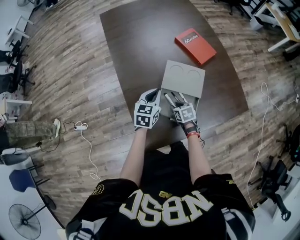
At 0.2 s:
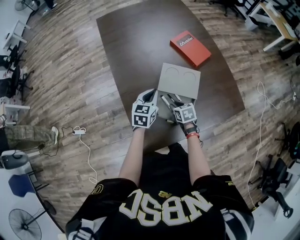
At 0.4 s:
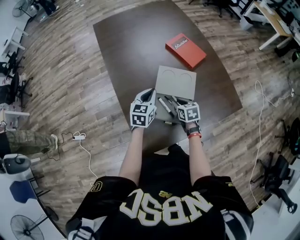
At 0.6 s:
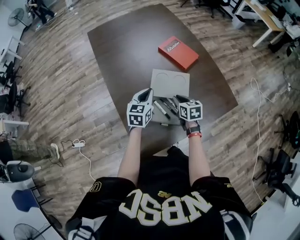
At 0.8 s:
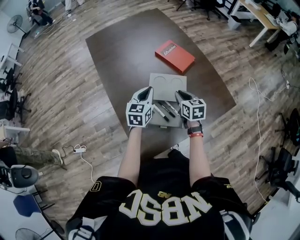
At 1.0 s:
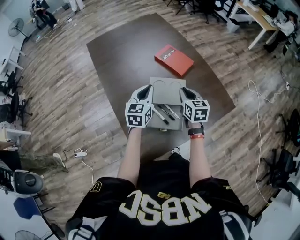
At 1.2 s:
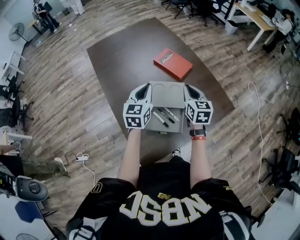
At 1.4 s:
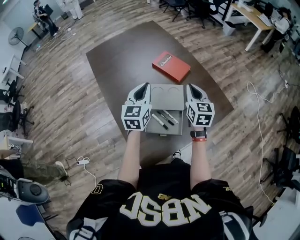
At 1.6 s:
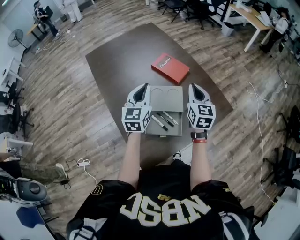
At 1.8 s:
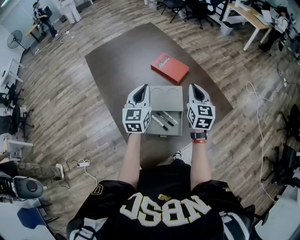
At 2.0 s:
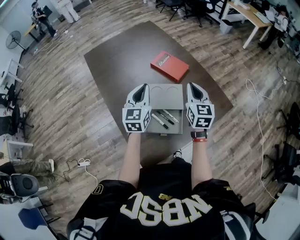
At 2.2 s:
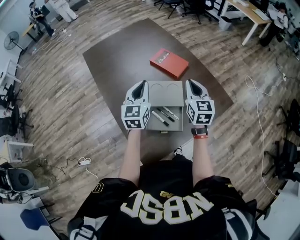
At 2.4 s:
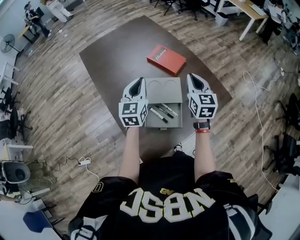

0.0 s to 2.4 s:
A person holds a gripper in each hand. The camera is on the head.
0.0 to 1.2 s: The right gripper shifts roughly 30 cm upward and to the right, tips its fingers upward by some 40 degrees, and closes its fingers. Meanwhile the left gripper travels upward by roughly 15 cm.
1.2 to 2.4 s: The right gripper travels upward by roughly 5 cm.

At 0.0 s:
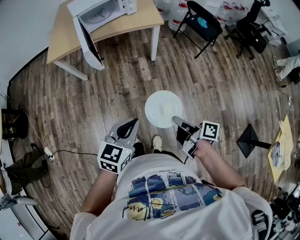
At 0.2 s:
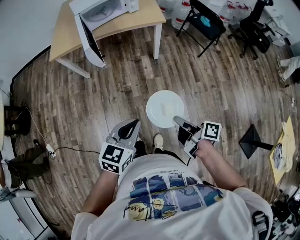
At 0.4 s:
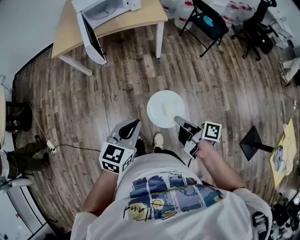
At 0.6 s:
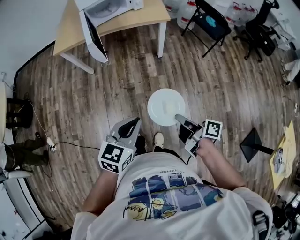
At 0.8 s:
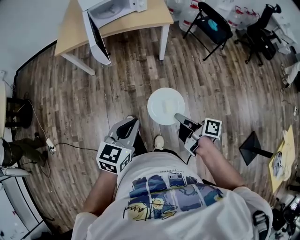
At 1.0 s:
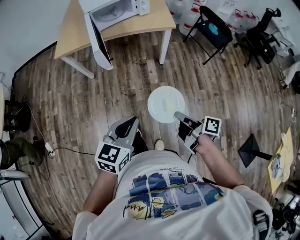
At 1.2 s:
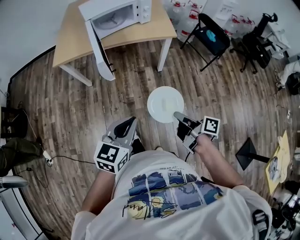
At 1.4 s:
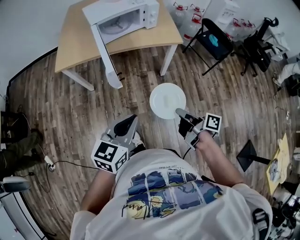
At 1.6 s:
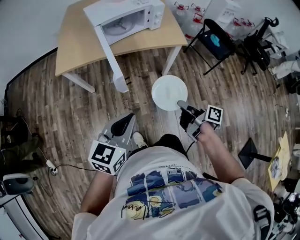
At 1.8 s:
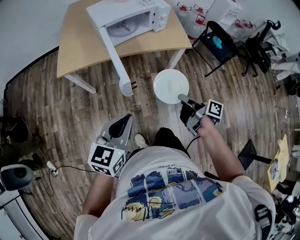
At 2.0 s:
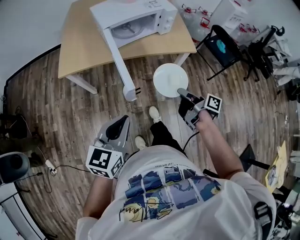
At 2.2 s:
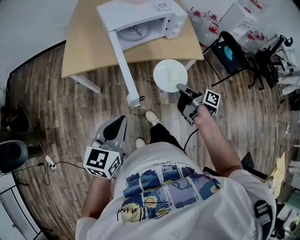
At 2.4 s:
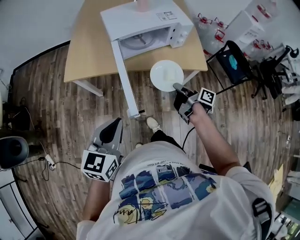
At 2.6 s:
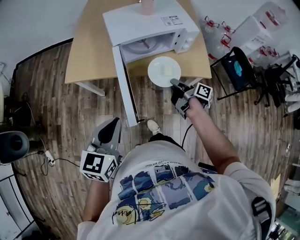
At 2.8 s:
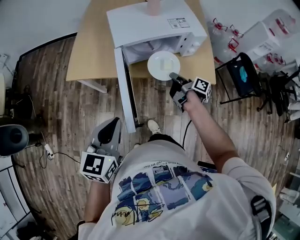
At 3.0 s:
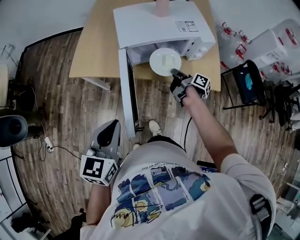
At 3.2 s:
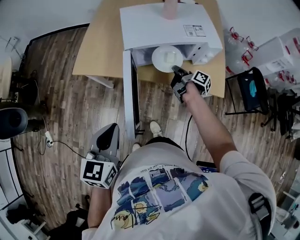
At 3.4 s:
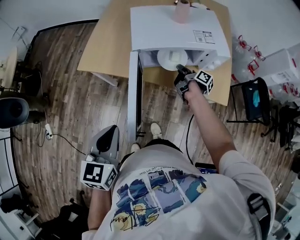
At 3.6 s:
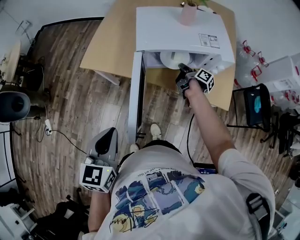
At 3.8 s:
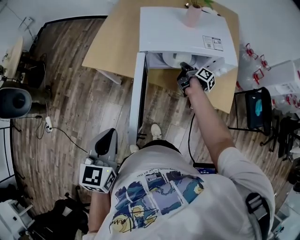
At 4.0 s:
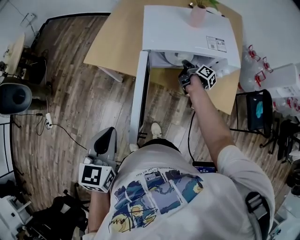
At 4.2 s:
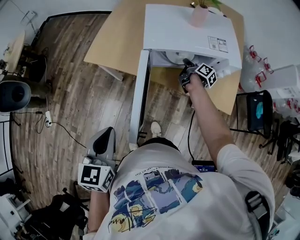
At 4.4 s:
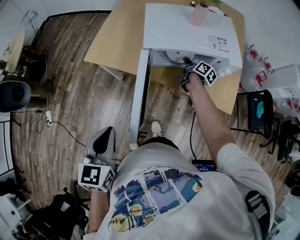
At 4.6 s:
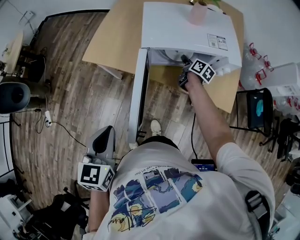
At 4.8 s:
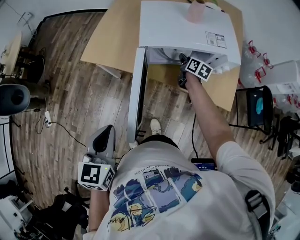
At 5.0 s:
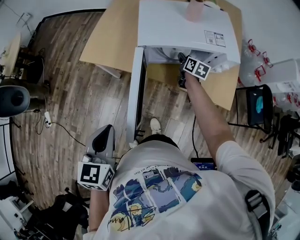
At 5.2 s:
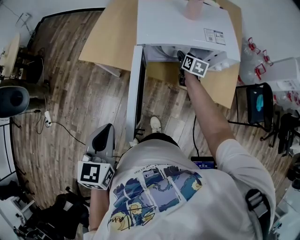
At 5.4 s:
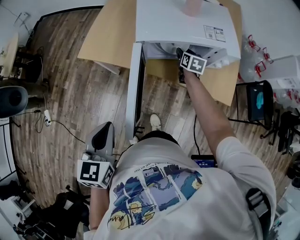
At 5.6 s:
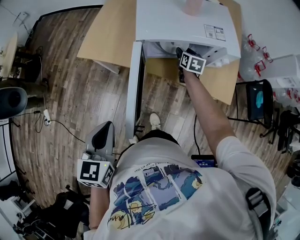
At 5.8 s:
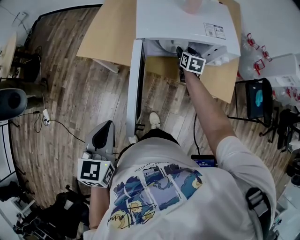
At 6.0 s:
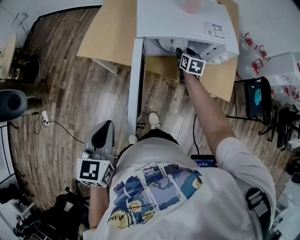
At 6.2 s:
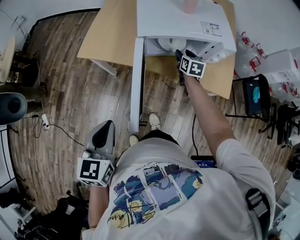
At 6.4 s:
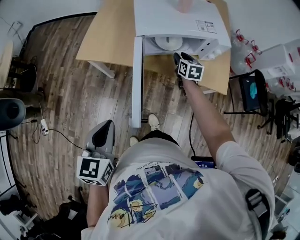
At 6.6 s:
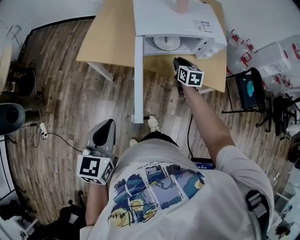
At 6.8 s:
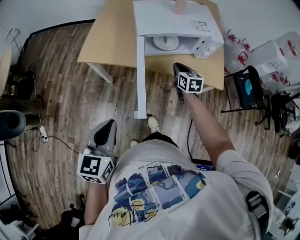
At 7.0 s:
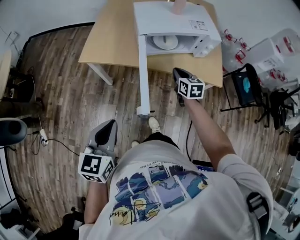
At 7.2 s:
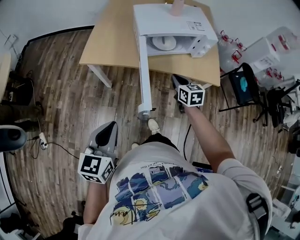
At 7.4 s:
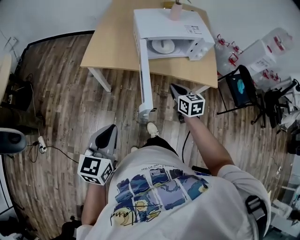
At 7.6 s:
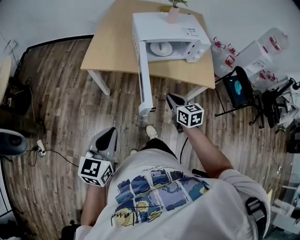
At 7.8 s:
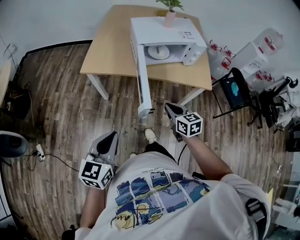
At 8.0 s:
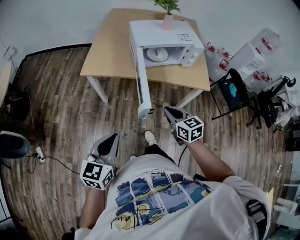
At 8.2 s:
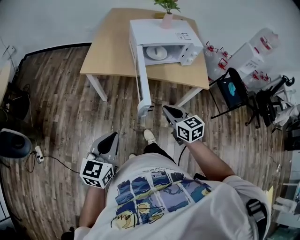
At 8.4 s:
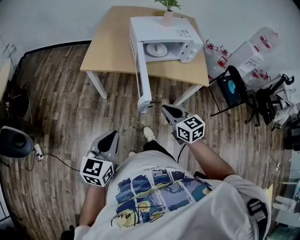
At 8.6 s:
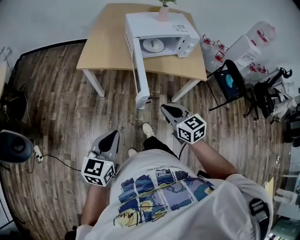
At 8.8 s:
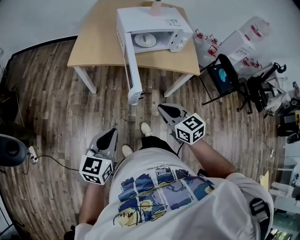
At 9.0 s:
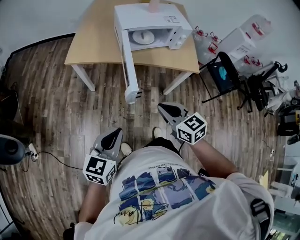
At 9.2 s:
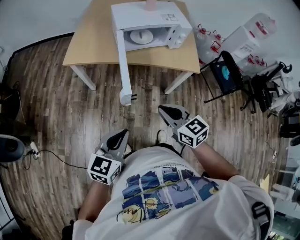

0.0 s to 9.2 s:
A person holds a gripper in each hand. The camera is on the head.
0.0 to 1.6 s: The right gripper heads forward, covering about 25 cm. Meanwhile the left gripper travels forward and to the left by roughly 25 cm.
1.6 to 3.0 s: The right gripper goes some 50 cm forward. Meanwhile the left gripper is displaced forward by roughly 20 cm, and rotates about 30 degrees.
3.0 to 4.6 s: The right gripper shifts roughly 15 cm forward, and changes its angle by approximately 30 degrees.
4.6 to 6.2 s: The right gripper rotates about 40 degrees, and opens its fingers.
6.2 to 7.6 s: The left gripper heads backward and to the left, covering some 15 cm. The right gripper travels backward by about 30 cm, and closes its fingers.
7.6 to 9.2 s: The left gripper shifts about 15 cm to the right and backward; the right gripper moves backward and upward, approximately 15 cm.

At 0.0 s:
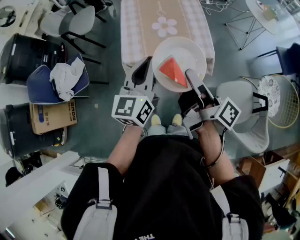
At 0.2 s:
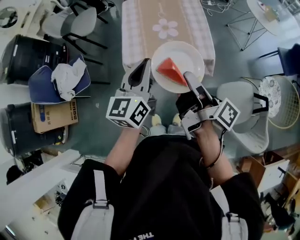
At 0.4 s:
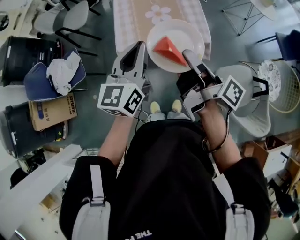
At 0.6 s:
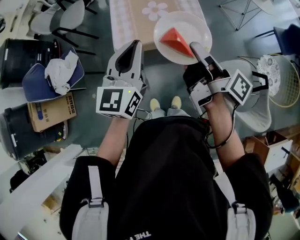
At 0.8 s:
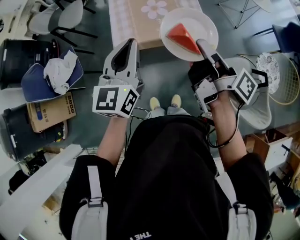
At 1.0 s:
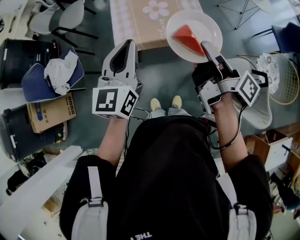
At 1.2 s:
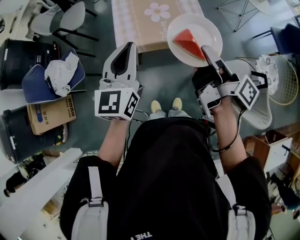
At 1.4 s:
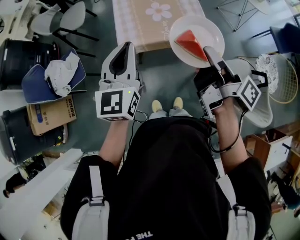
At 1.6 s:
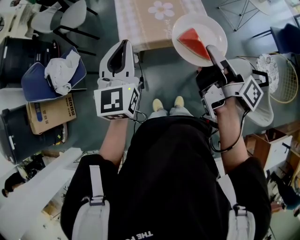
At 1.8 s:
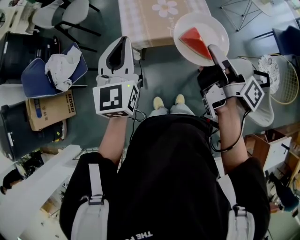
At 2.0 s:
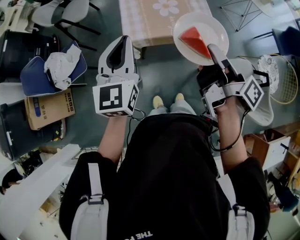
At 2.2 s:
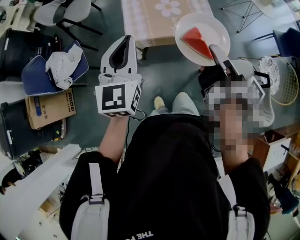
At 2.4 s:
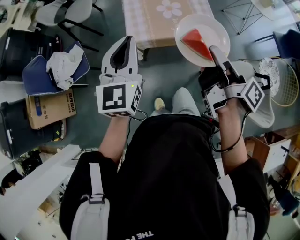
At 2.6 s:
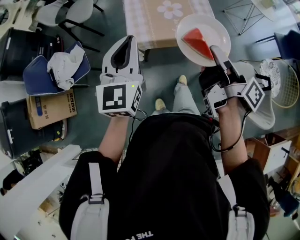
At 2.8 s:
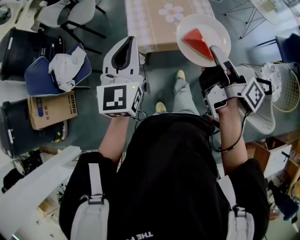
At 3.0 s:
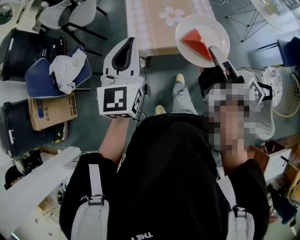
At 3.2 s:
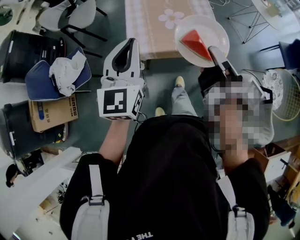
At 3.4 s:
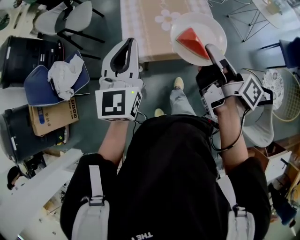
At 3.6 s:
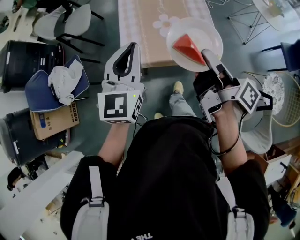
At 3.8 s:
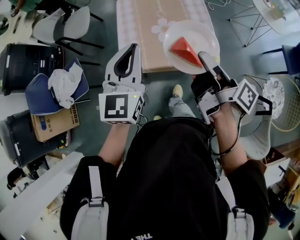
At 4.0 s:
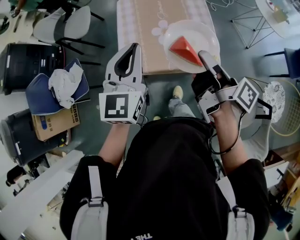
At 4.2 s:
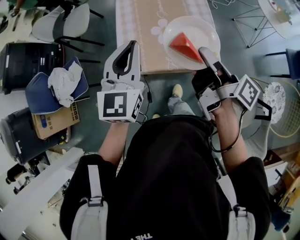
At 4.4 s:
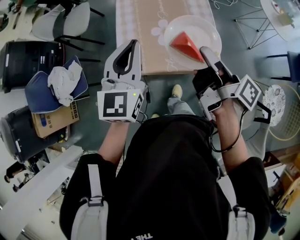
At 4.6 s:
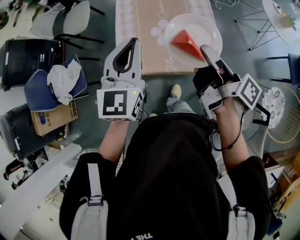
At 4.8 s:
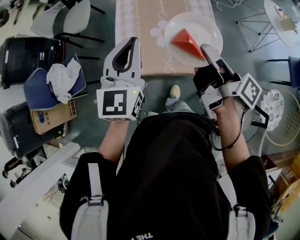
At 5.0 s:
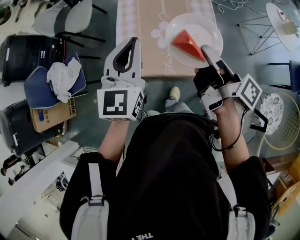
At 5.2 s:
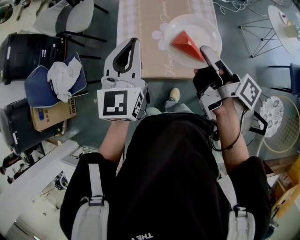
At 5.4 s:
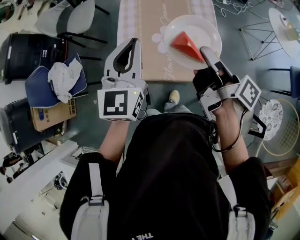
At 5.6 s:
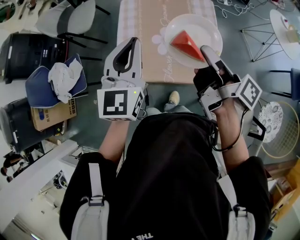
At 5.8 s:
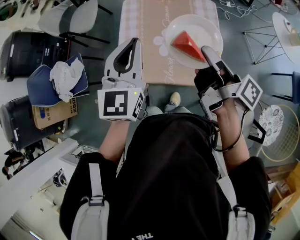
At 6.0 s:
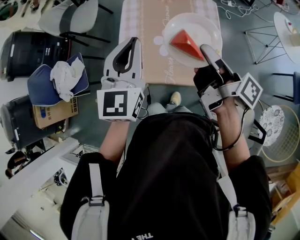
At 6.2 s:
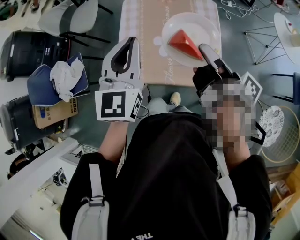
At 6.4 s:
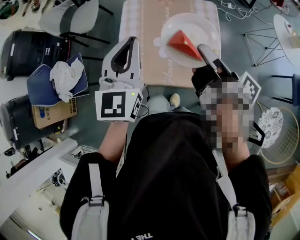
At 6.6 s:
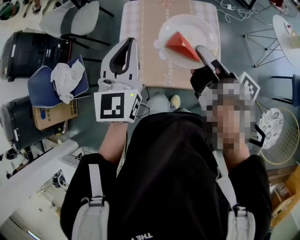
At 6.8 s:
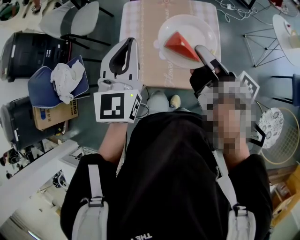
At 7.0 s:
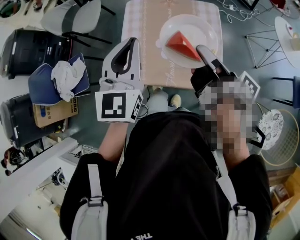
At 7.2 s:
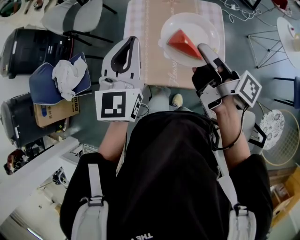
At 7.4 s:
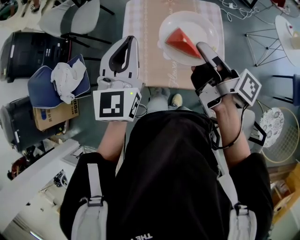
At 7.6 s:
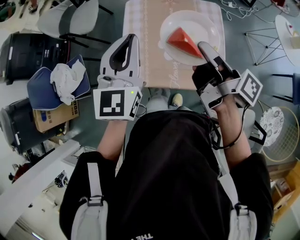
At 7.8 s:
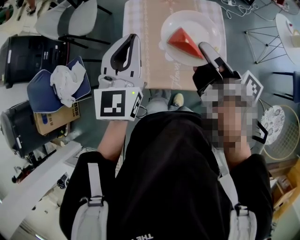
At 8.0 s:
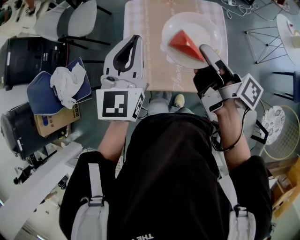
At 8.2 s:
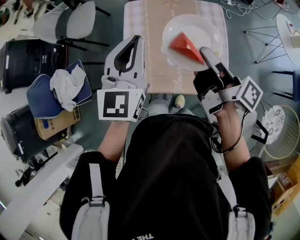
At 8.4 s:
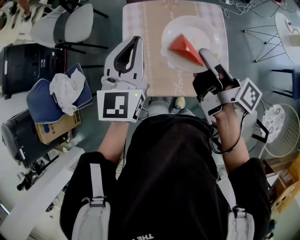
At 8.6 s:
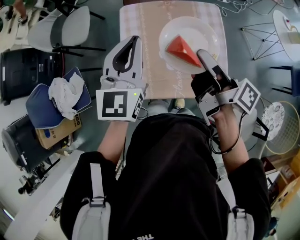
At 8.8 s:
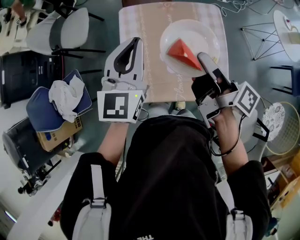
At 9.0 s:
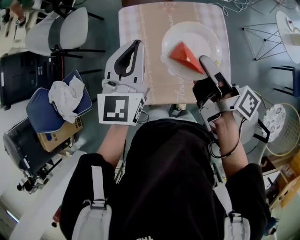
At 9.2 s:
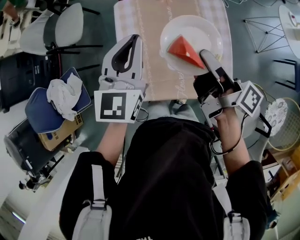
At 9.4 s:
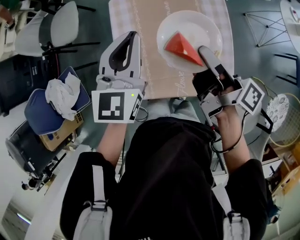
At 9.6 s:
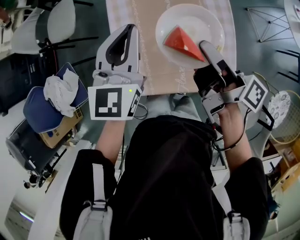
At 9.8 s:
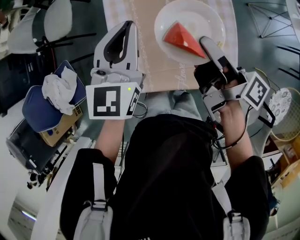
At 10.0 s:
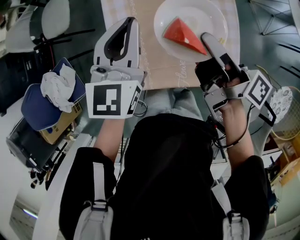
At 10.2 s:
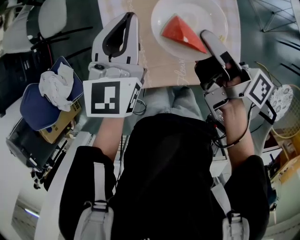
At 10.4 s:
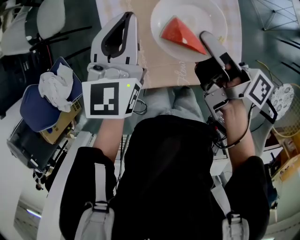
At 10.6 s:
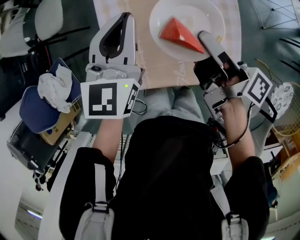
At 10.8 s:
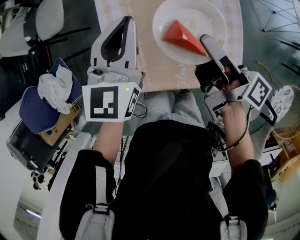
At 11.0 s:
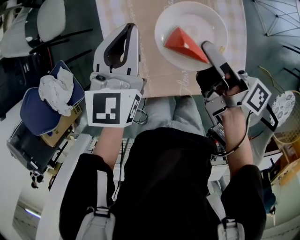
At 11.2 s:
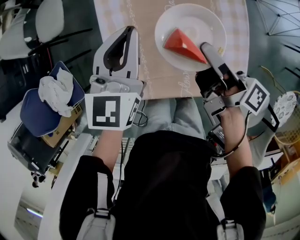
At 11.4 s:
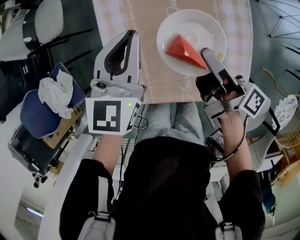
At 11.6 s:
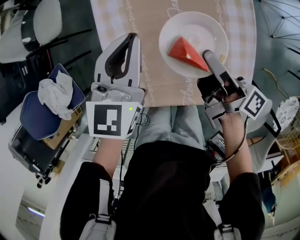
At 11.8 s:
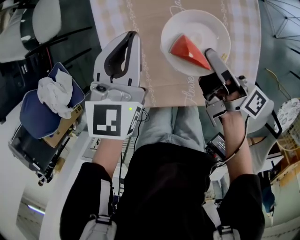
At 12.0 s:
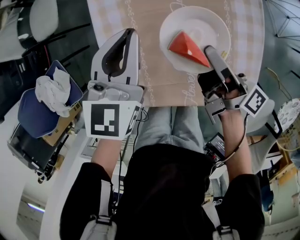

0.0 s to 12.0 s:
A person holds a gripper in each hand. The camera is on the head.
0.0 to 1.6 s: The left gripper moves roughly 15 cm.
3.0 to 4.4 s: The left gripper shifts by roughly 20 cm.
4.4 to 6.0 s: The left gripper changes place by about 10 cm.
6.0 to 7.6 s: The left gripper ends up some 5 cm from where it was.
7.6 to 9.0 s: The left gripper changes place by roughly 10 cm.
9.0 to 10.4 s: The left gripper goes roughly 10 cm downward.
10.4 to 12.0 s: The left gripper goes approximately 10 cm downward.
